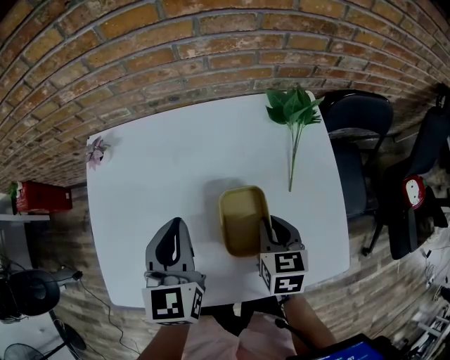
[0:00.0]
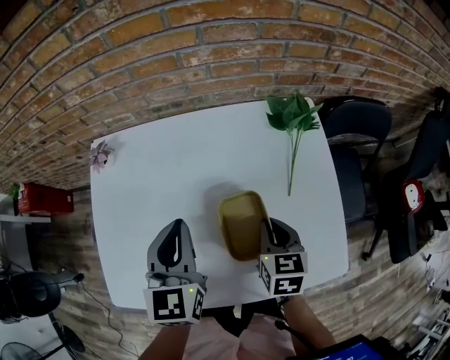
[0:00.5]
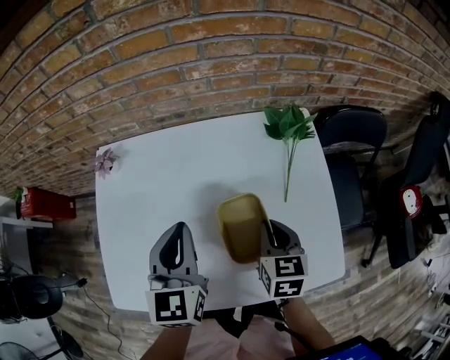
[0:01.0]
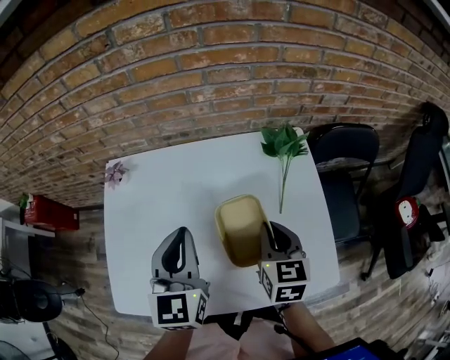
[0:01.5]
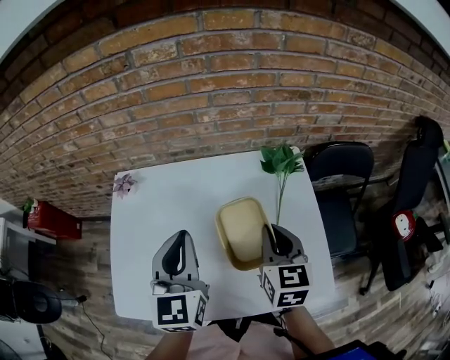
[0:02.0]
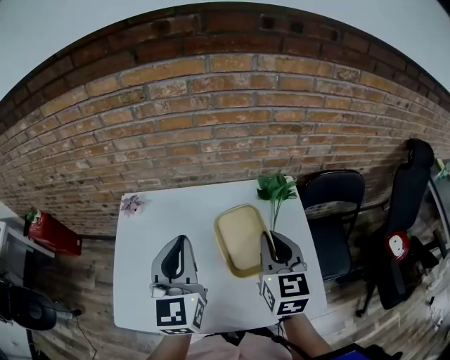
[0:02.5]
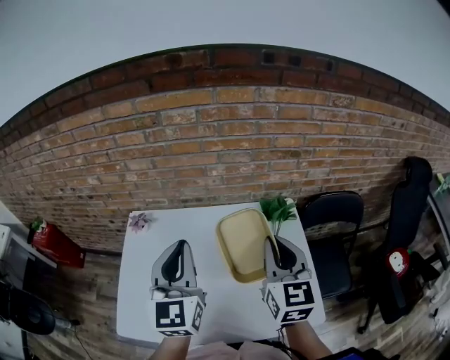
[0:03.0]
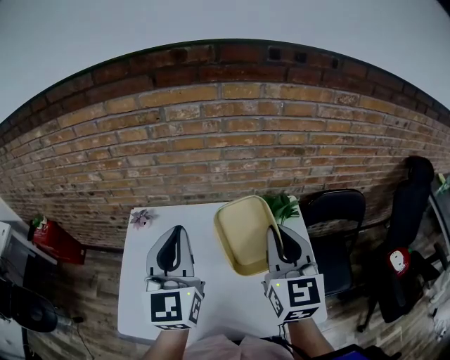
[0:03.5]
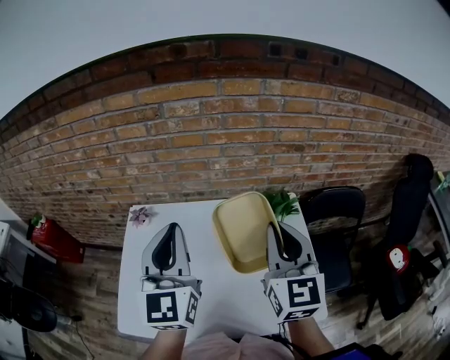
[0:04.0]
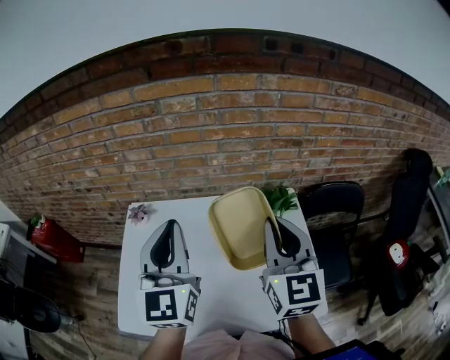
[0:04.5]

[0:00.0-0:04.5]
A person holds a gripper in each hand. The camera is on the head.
0:00.0 to 0:02.0: Both grippers move upward, approximately 15 cm. The right gripper changes its angle by some 20 degrees.
0:02.0 to 0:04.5: The grippers both shift upward by roughly 15 cm. The right gripper changes its angle by roughly 30 degrees.

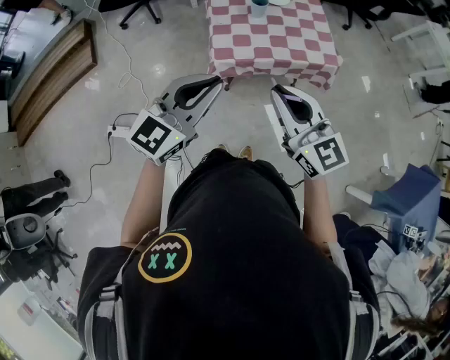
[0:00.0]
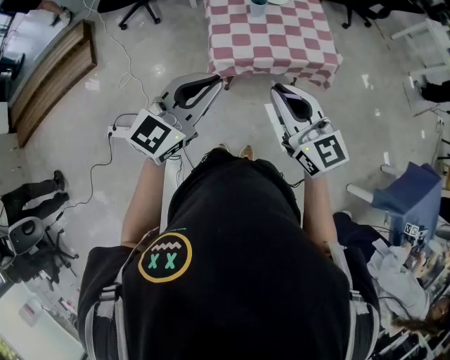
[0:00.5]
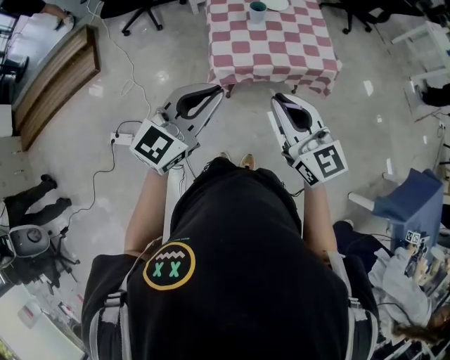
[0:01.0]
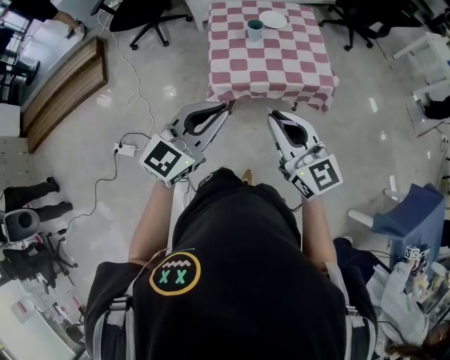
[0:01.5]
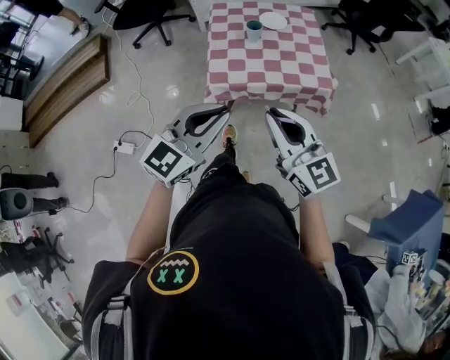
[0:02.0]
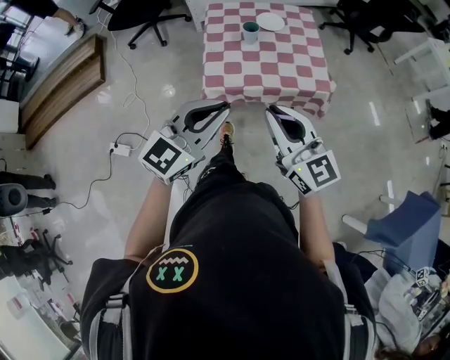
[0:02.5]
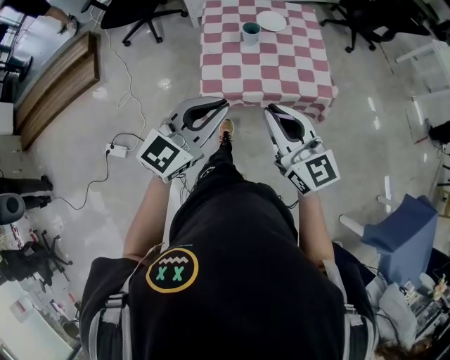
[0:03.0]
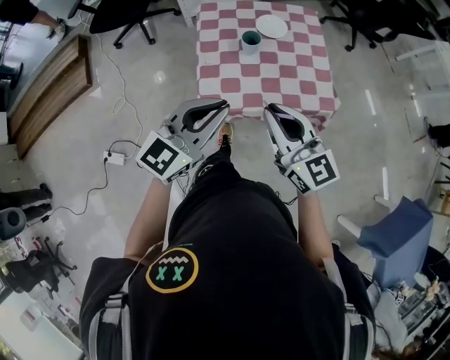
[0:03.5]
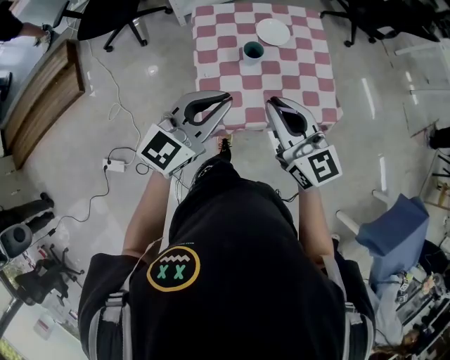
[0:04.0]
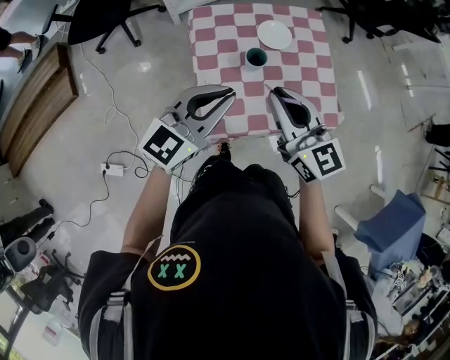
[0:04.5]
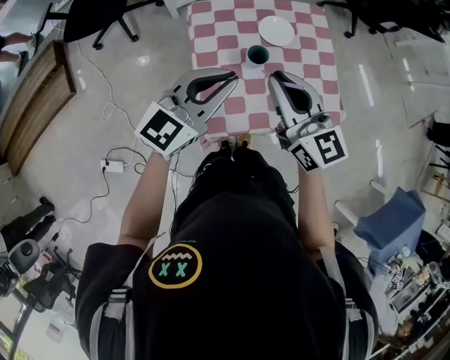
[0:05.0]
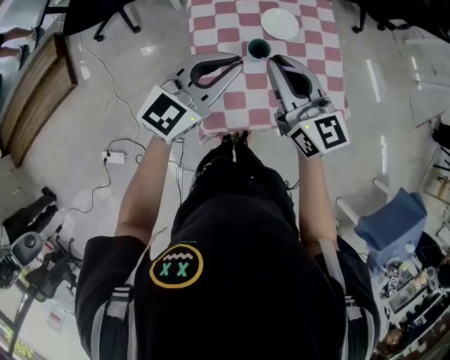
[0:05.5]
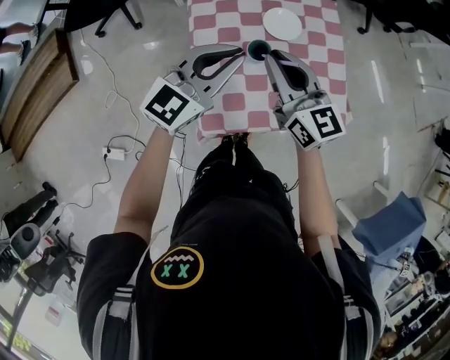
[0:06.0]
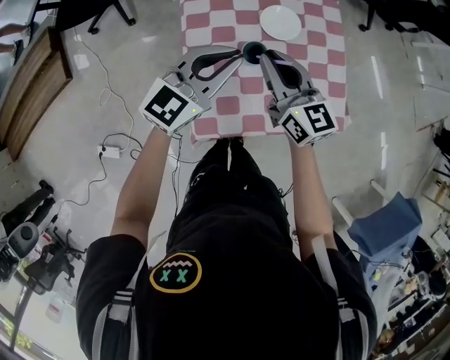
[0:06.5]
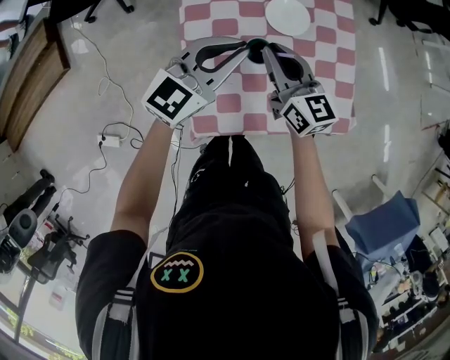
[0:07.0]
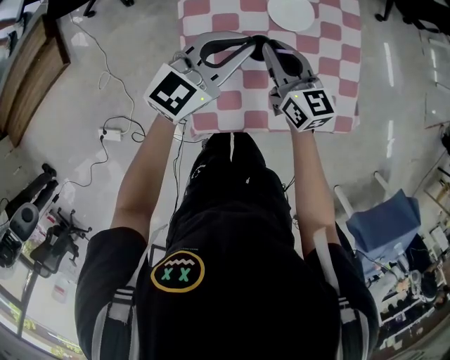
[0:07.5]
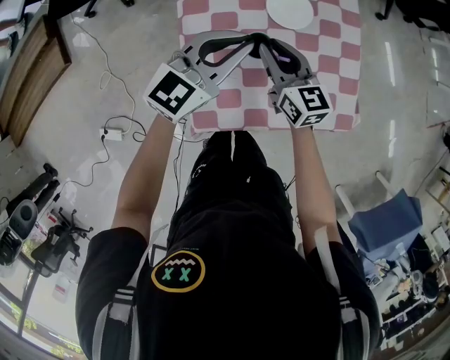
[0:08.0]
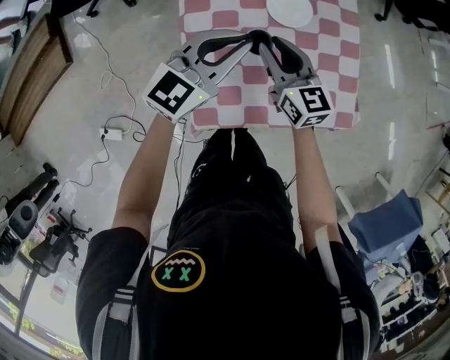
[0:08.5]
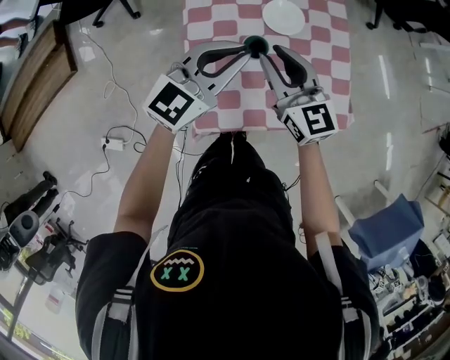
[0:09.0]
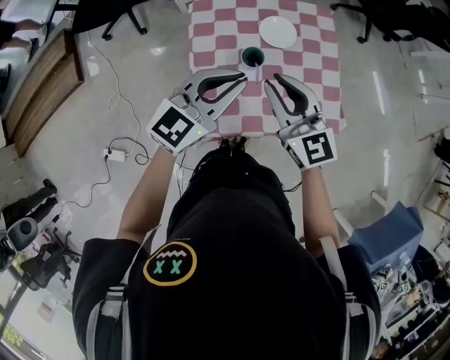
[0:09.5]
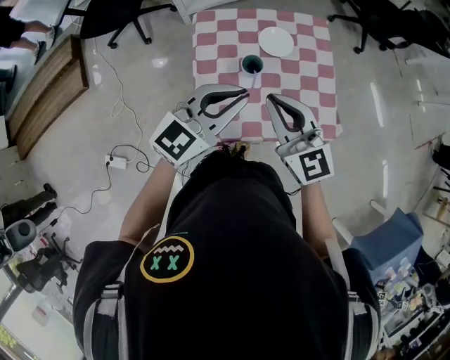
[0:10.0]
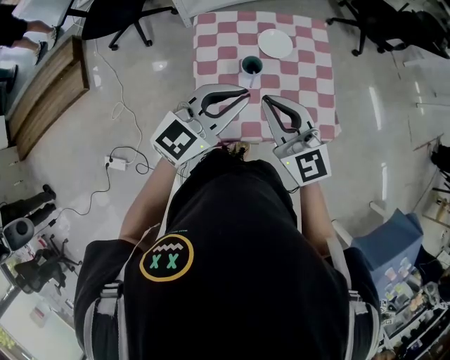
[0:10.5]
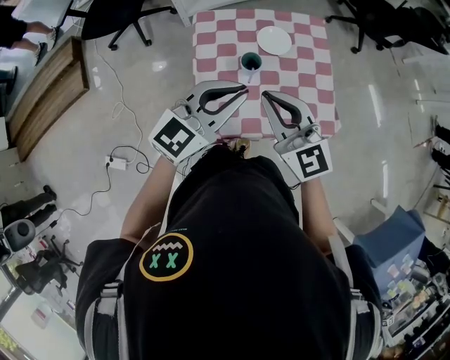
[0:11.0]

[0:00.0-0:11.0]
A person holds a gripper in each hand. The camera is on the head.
0:00.0 to 0:02.0: The two grippers go about 10 cm to the right.
0:02.0 to 0:03.5: Both grippers move forward, about 20 cm.
0:03.5 to 0:05.5: Both grippers move forward, approximately 25 cm.
0:05.5 to 0:07.5: The right gripper shifts roughly 20 cm downward and forward, while the left gripper shifts some 15 cm forward and downward.
0:07.5 to 0:09.0: The right gripper travels upward and backward by about 10 cm, while the left gripper moves backward and upward, about 10 cm.
0:09.0 to 0:11.0: The two grippers go about 15 cm backward and upward. The right gripper closes its fingers.

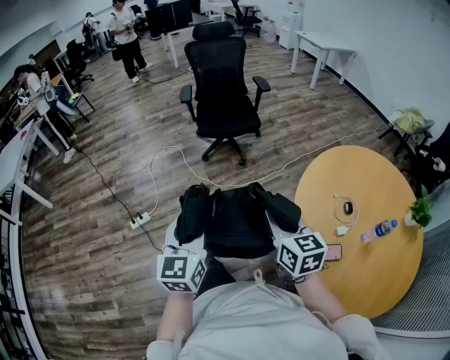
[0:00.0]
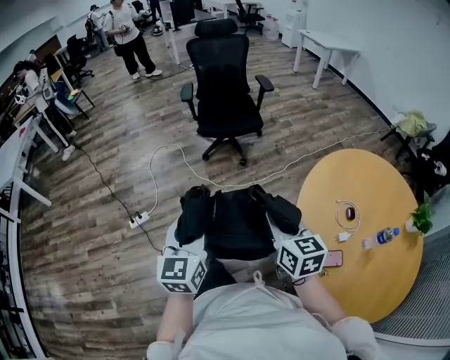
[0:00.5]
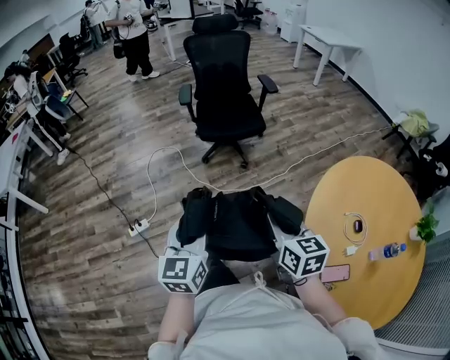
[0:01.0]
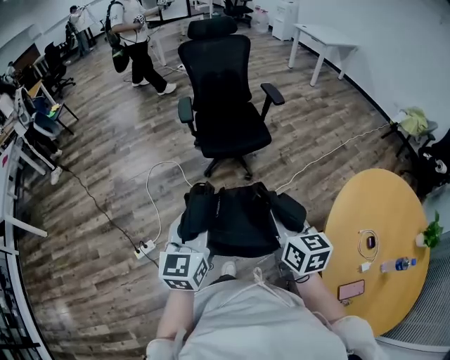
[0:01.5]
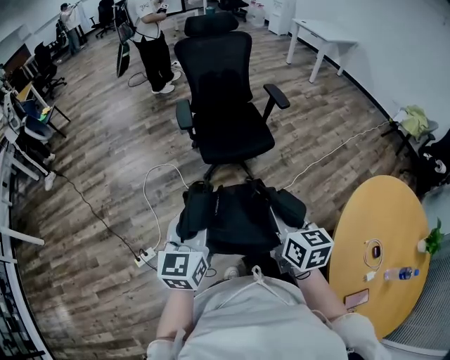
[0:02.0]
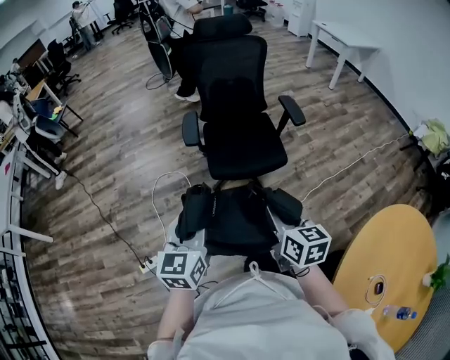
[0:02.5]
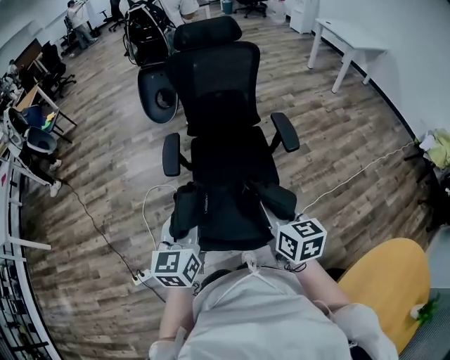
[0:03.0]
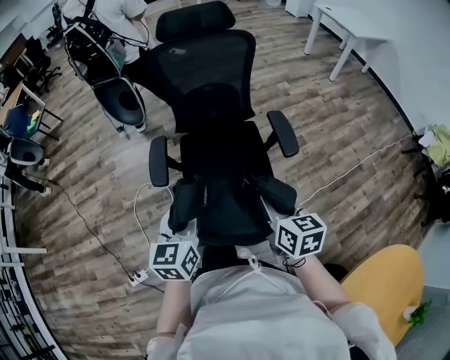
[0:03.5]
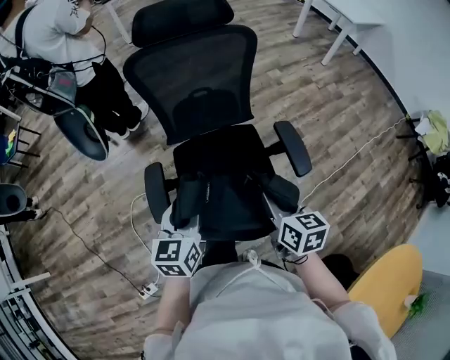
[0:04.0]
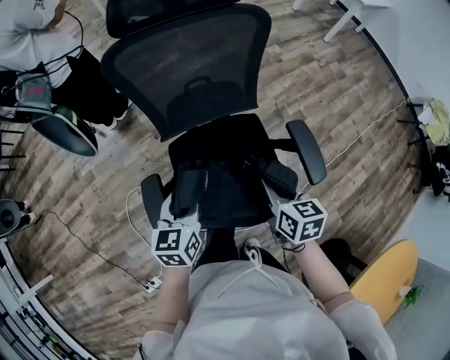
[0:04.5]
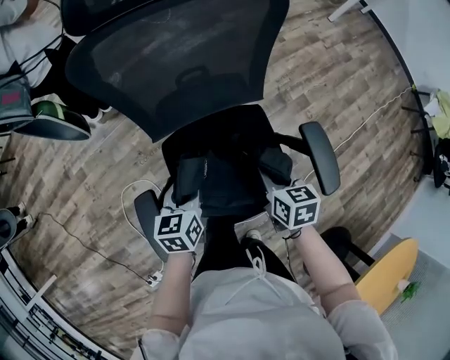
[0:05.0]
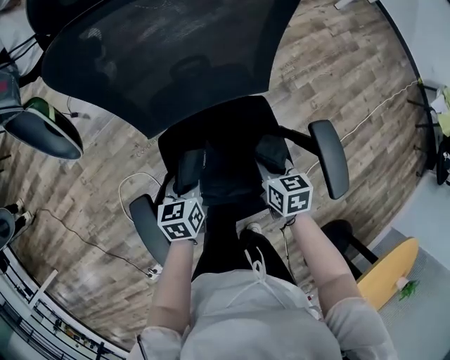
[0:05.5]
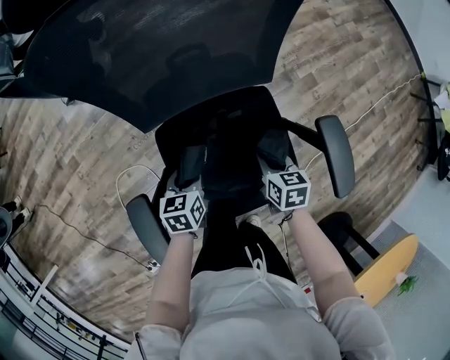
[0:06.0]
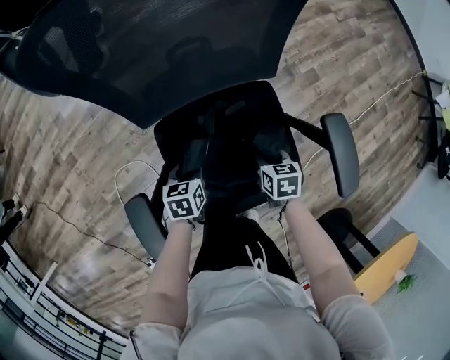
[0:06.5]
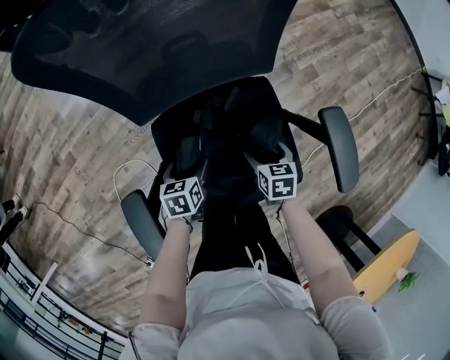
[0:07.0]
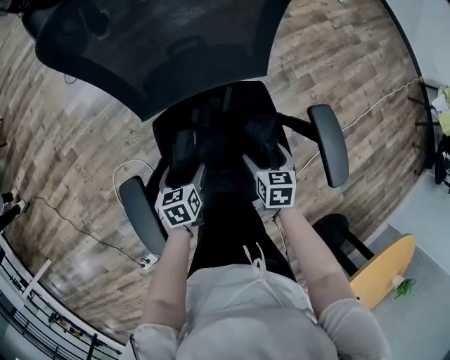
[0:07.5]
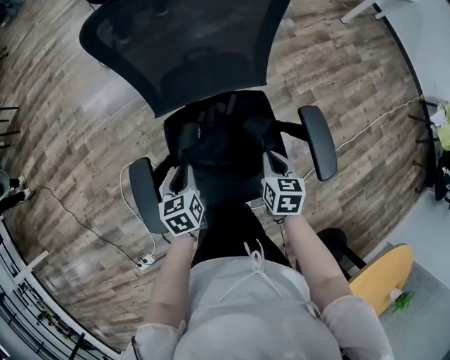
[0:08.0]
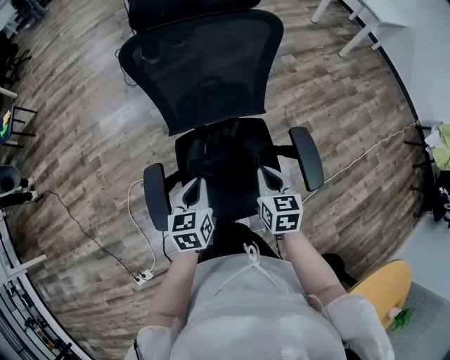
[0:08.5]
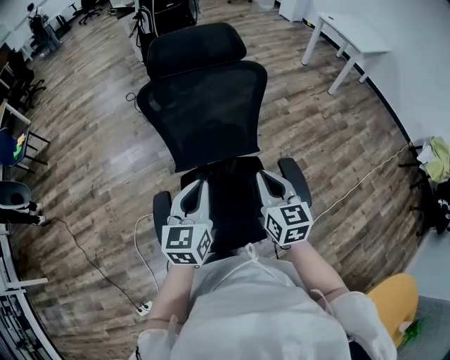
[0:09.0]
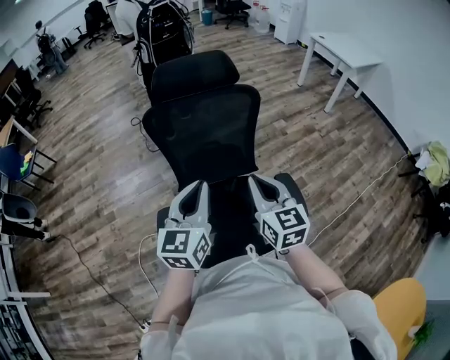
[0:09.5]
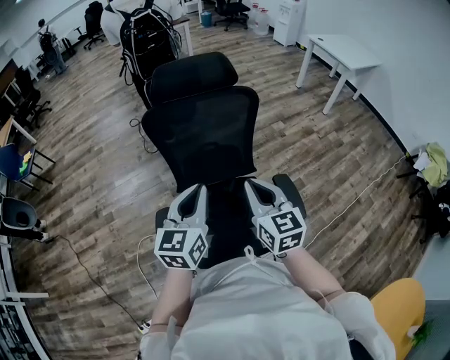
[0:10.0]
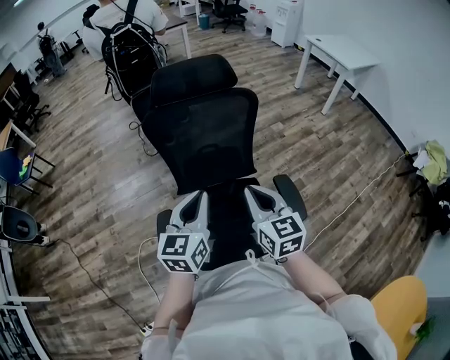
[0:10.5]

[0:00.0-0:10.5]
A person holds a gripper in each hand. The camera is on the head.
0:00.0 to 0:02.0: The pair of grippers is taken forward, about 40 cm.
0:02.0 to 0:04.0: The two grippers travel together, forward, some 70 cm.
0:04.0 to 0:06.5: Both grippers move downward and forward, about 50 cm. The right gripper turns by approximately 30 degrees; the left gripper angles its fingers downward, by roughly 30 degrees.
0:06.5 to 0:08.5: The grippers both shift upward by approximately 30 cm. The right gripper swivels about 30 degrees, and opens, then closes once more; the left gripper changes its angle by approximately 20 degrees, and opens, then closes once more.
0:08.5 to 0:10.5: The grippers both shift upward by roughly 25 cm. The right gripper turns by roughly 30 degrees. The left gripper turns by approximately 30 degrees.

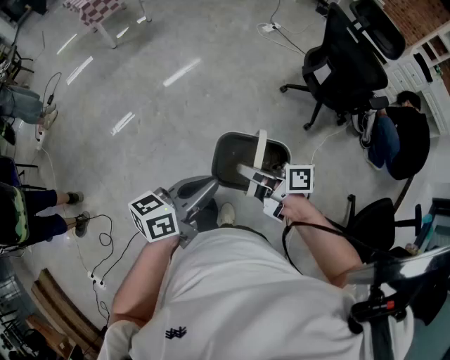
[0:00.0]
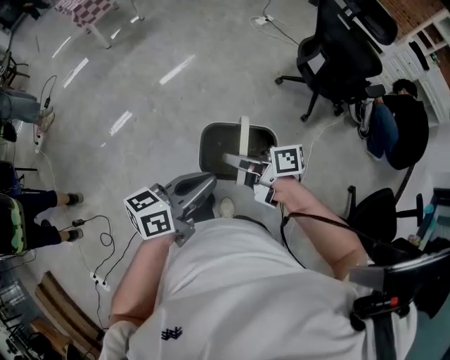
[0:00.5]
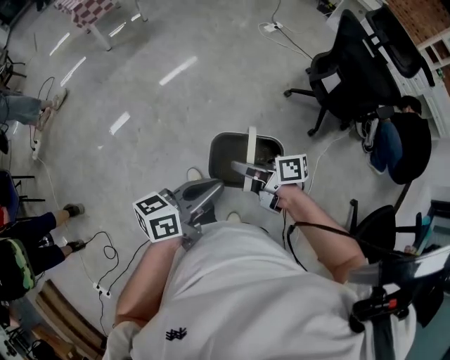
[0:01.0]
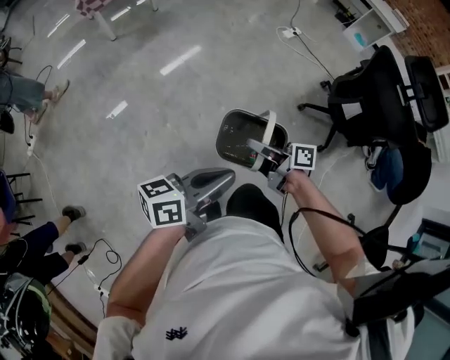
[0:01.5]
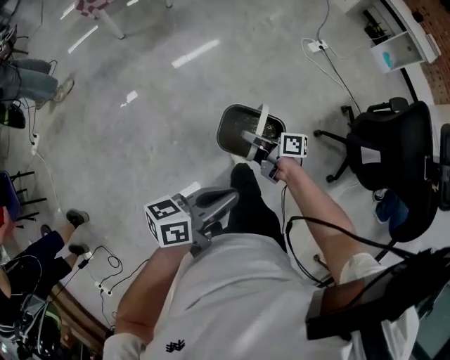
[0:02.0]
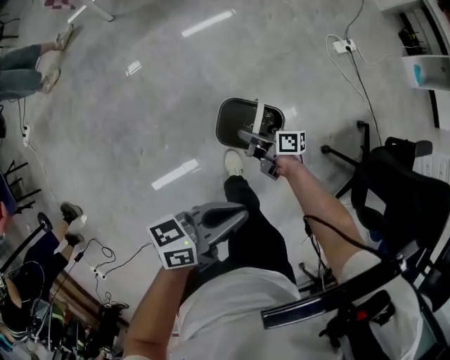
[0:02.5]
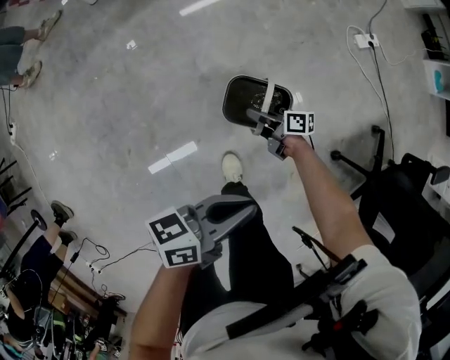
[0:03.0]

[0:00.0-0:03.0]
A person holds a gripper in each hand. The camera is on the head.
0:00.0 to 0:01.5: The right gripper changes place by roughly 35 cm, while the left gripper moves about 30 cm.
0:01.5 to 0:03.0: The pair of grippers is taken approximately 50 cm. The right gripper rotates some 20 degrees.
